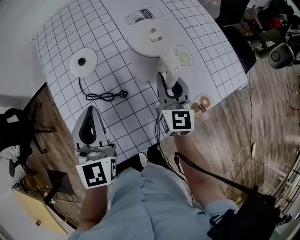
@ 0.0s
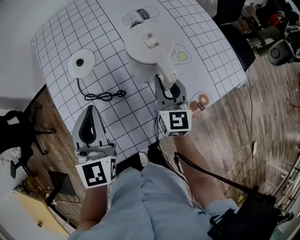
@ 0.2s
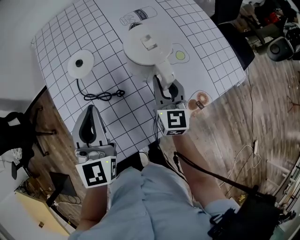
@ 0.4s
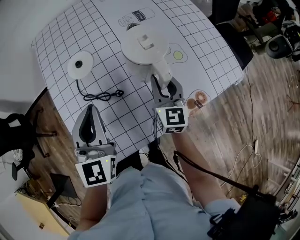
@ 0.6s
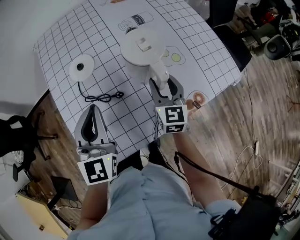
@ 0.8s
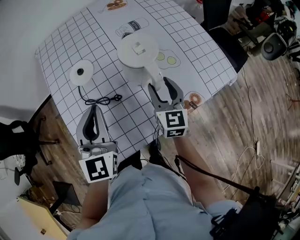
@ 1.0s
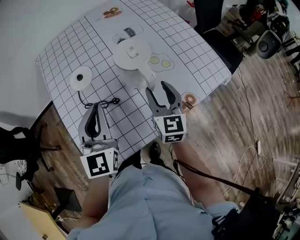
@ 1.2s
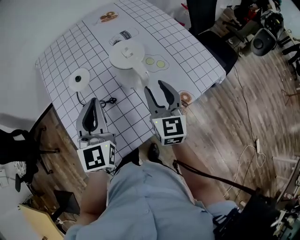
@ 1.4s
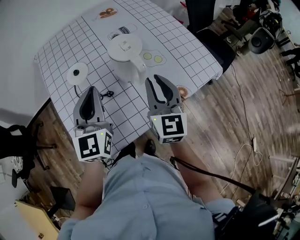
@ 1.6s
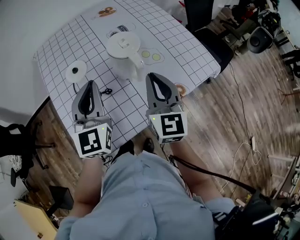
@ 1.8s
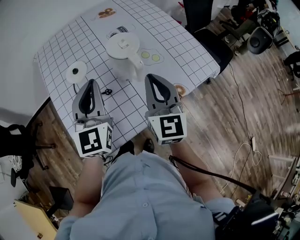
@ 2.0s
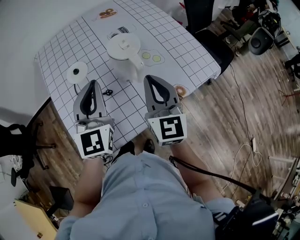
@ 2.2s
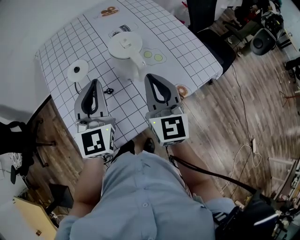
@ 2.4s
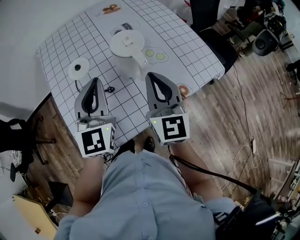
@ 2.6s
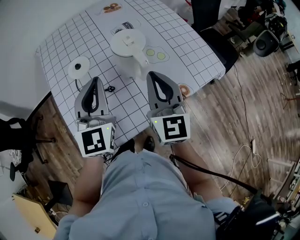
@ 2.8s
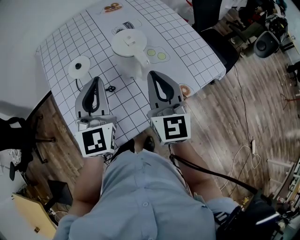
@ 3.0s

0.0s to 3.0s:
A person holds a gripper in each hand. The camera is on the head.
0.0s to 1.6s: The left gripper travels to the right and upward by about 10 cm. Meanwhile the right gripper shifts some 15 cm upward and backward, and opens, then closes again.
1.6s to 3.0s: The grippers move only a little.

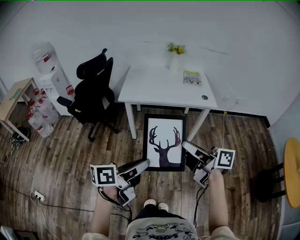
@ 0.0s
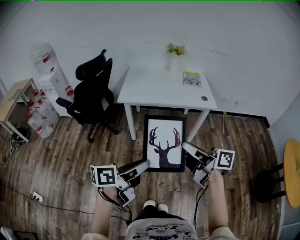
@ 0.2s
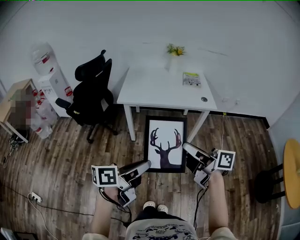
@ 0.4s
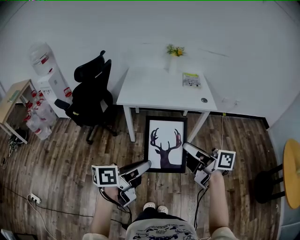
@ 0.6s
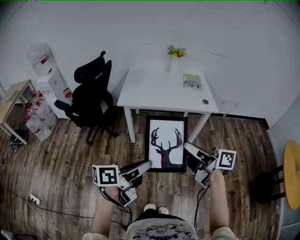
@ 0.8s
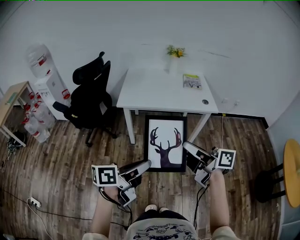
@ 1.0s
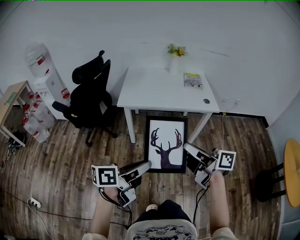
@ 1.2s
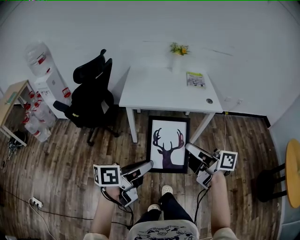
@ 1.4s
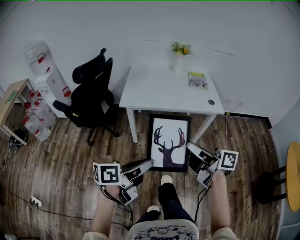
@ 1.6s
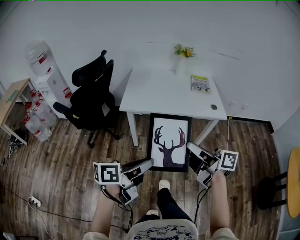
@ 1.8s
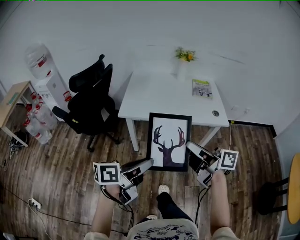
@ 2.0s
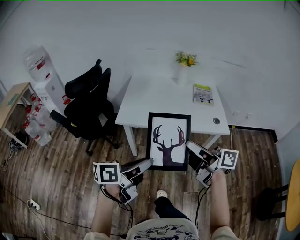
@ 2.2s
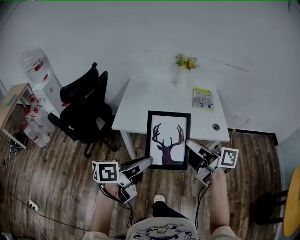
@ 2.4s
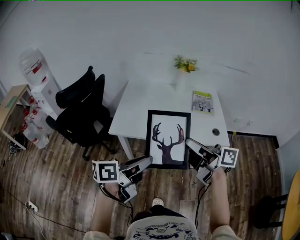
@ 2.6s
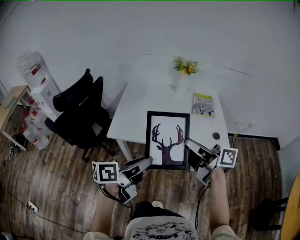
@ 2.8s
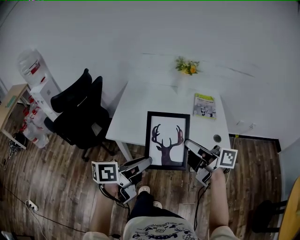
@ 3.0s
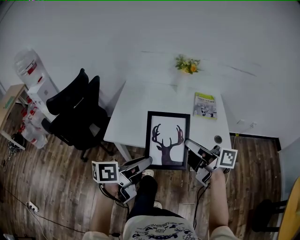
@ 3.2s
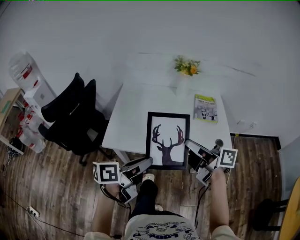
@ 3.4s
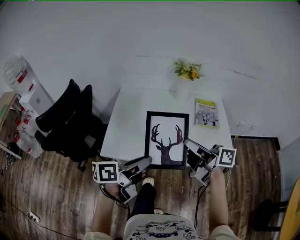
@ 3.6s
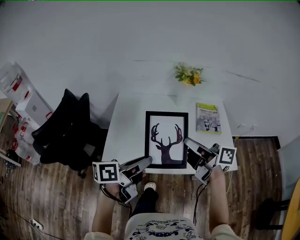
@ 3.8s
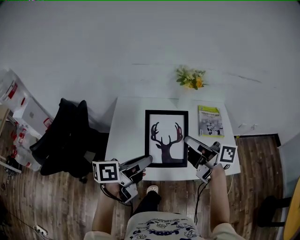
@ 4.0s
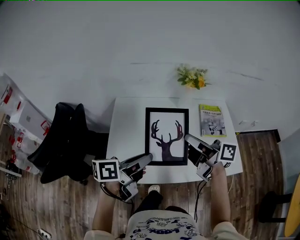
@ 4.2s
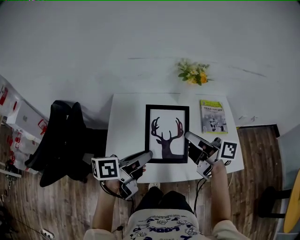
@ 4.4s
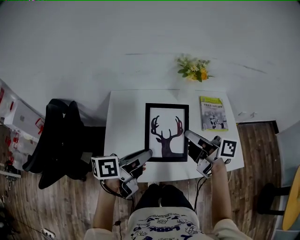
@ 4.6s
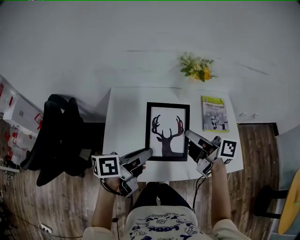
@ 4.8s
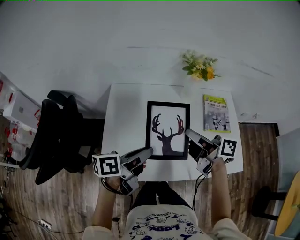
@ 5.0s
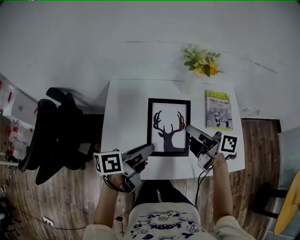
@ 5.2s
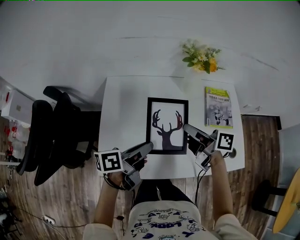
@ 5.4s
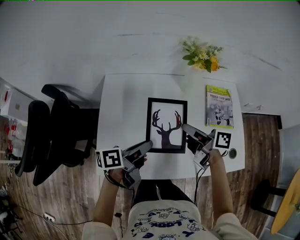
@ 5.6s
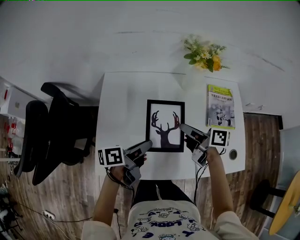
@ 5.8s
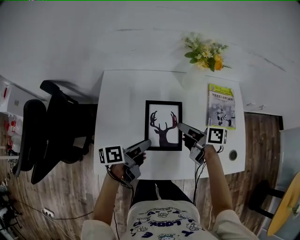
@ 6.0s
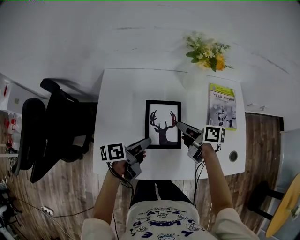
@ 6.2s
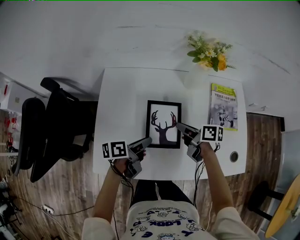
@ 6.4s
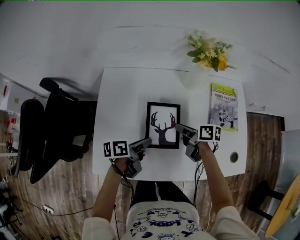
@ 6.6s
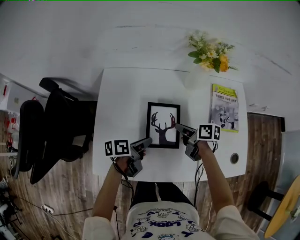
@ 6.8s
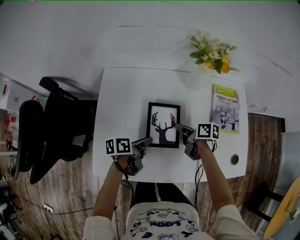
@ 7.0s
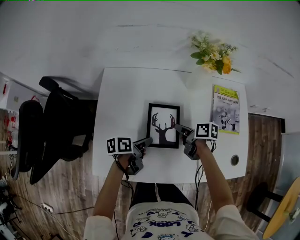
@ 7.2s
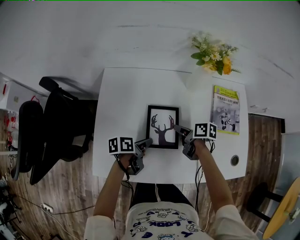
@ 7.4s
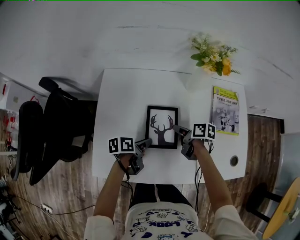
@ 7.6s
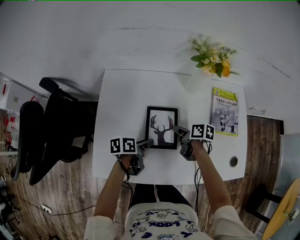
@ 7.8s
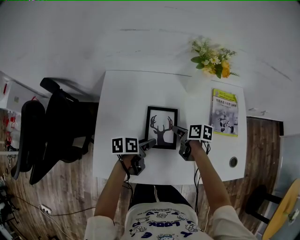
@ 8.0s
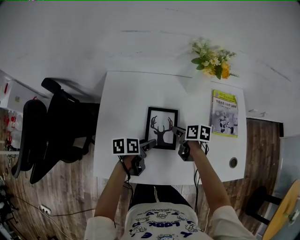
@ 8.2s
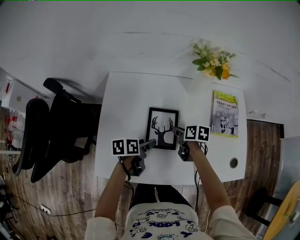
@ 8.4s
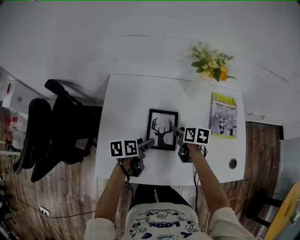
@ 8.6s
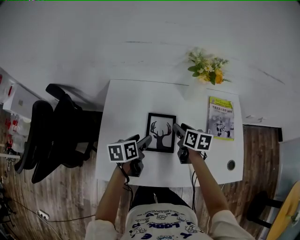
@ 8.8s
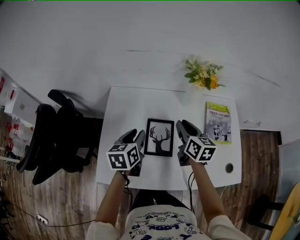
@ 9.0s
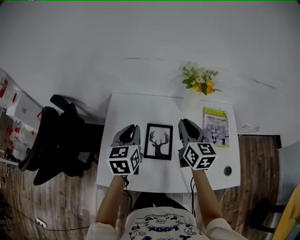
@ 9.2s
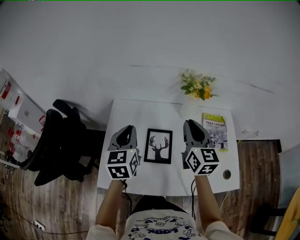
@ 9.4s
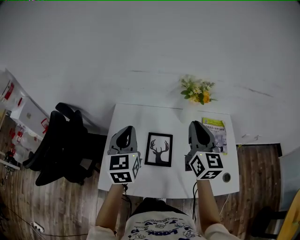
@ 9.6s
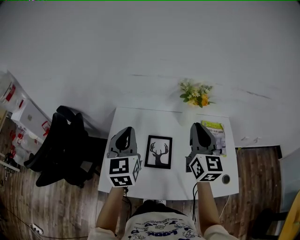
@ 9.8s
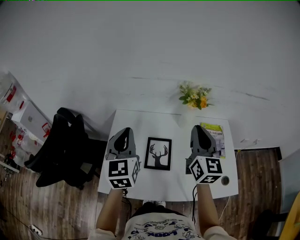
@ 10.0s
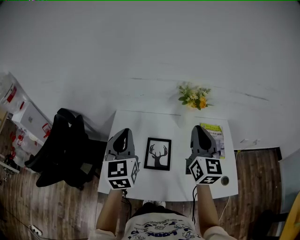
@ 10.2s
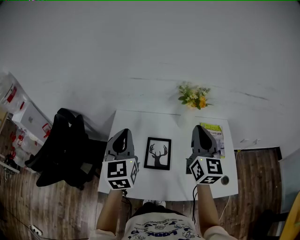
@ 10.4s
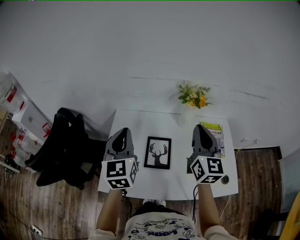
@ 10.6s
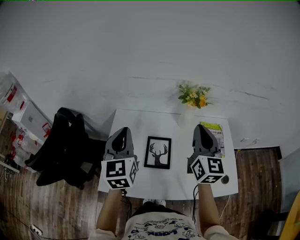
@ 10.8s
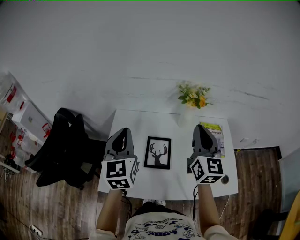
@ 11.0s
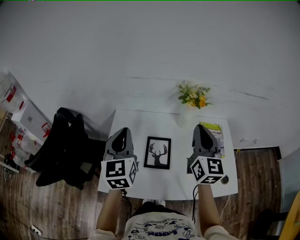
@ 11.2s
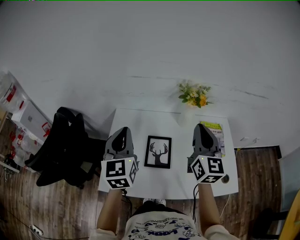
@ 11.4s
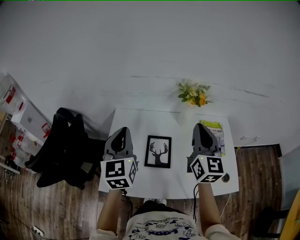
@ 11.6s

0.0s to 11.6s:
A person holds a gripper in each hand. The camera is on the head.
0.0s to 1.4s: Both grippers travel together forward, some 5 cm.
1.4s to 2.8s: The two grippers go some 35 cm forward.
2.8s to 4.4s: Both grippers travel together forward, about 35 cm.
4.4s to 5.8s: Both grippers move downward and forward, roughly 15 cm.
5.8s to 7.2s: Both grippers move downward, roughly 15 cm. The right gripper rotates about 20 degrees.
7.2s to 8.8s: Both grippers move upward, approximately 10 cm. The right gripper swivels about 30 degrees, and opens its fingers, while the left gripper rotates approximately 30 degrees, and opens.
8.8s to 10.2s: The grippers both shift upward by approximately 30 cm. The right gripper tilts its fingers some 40 degrees upward, and closes its fingers. Meanwhile the left gripper angles its fingers upward, by about 30 degrees, and closes its fingers.
10.2s to 11.6s: Both grippers stay about where they are.

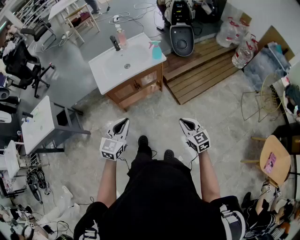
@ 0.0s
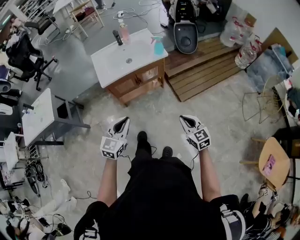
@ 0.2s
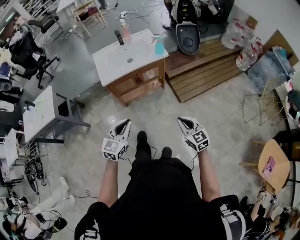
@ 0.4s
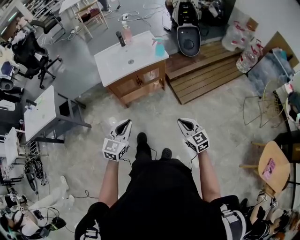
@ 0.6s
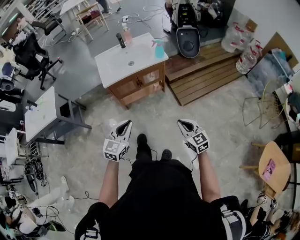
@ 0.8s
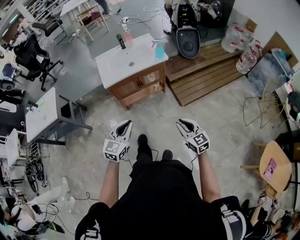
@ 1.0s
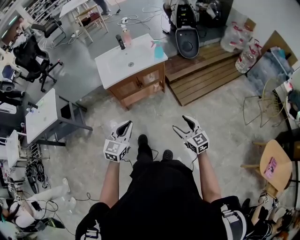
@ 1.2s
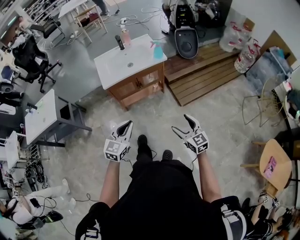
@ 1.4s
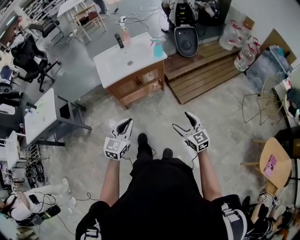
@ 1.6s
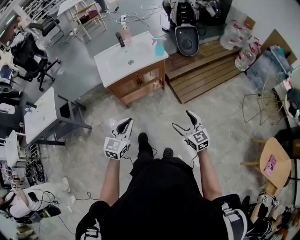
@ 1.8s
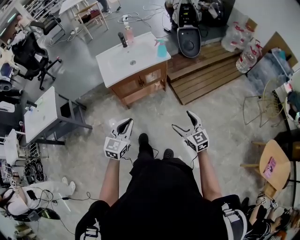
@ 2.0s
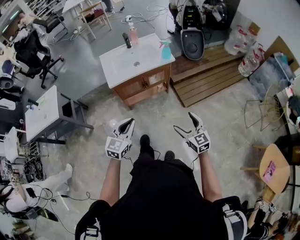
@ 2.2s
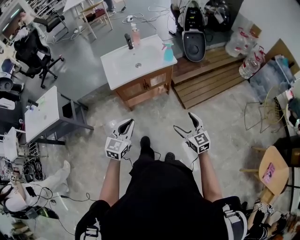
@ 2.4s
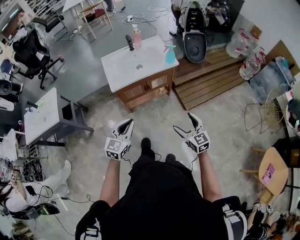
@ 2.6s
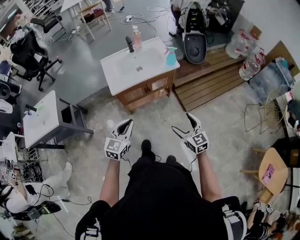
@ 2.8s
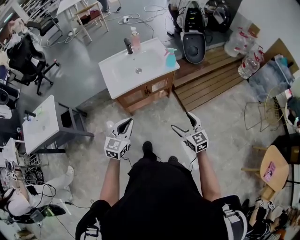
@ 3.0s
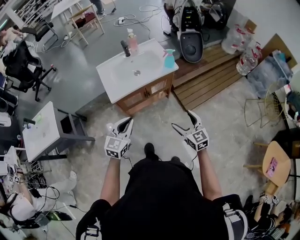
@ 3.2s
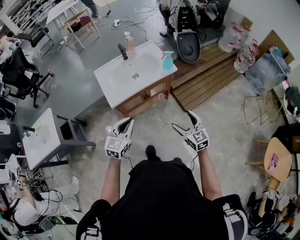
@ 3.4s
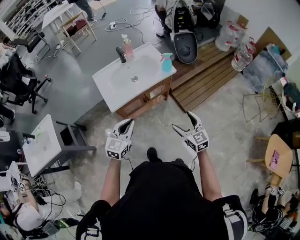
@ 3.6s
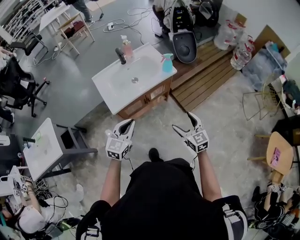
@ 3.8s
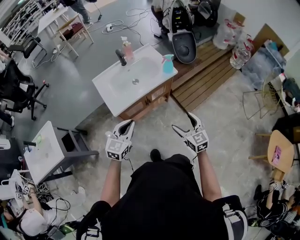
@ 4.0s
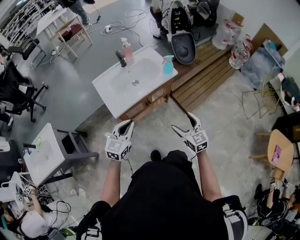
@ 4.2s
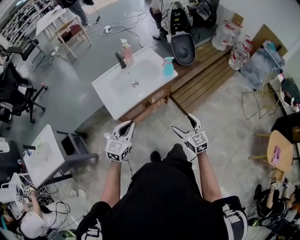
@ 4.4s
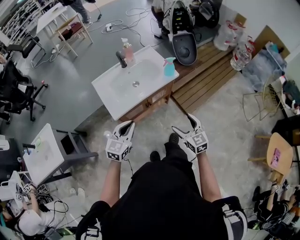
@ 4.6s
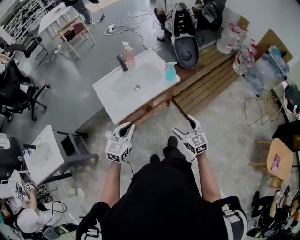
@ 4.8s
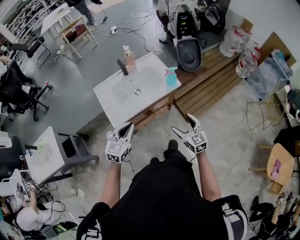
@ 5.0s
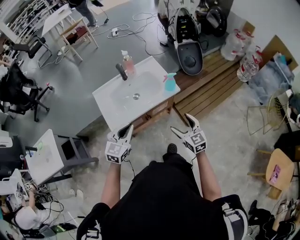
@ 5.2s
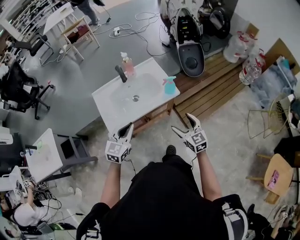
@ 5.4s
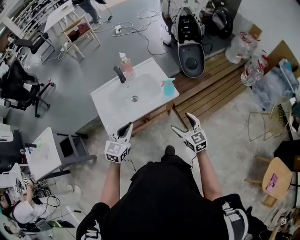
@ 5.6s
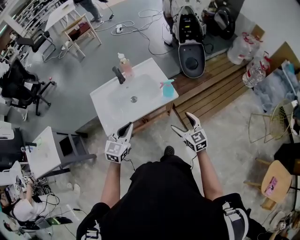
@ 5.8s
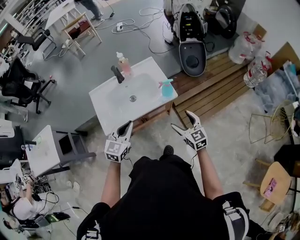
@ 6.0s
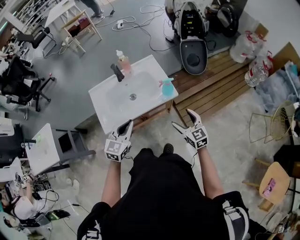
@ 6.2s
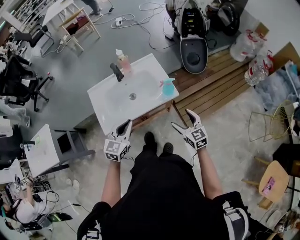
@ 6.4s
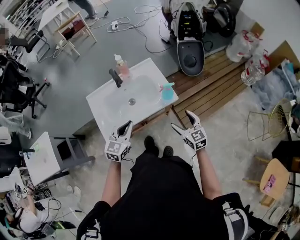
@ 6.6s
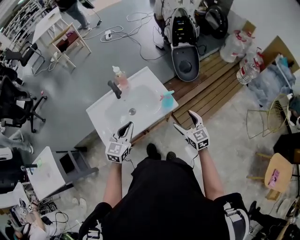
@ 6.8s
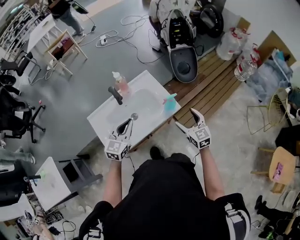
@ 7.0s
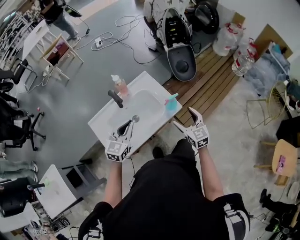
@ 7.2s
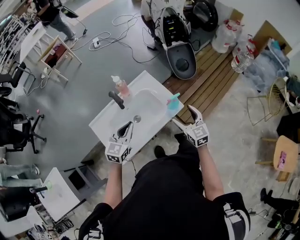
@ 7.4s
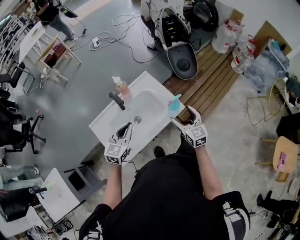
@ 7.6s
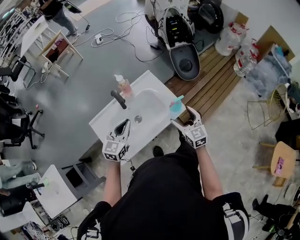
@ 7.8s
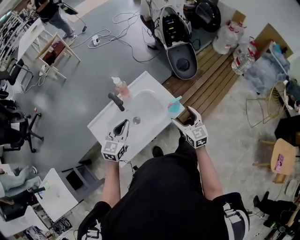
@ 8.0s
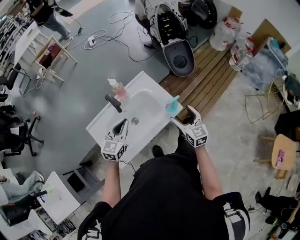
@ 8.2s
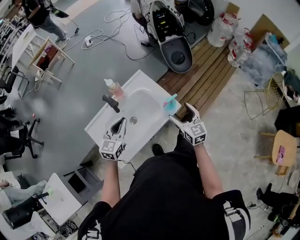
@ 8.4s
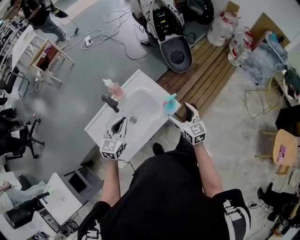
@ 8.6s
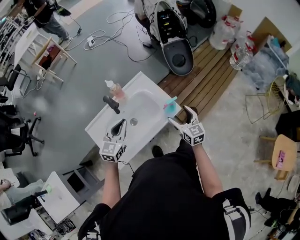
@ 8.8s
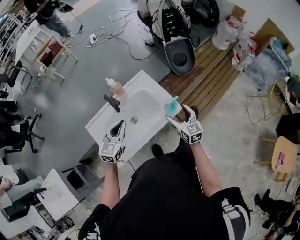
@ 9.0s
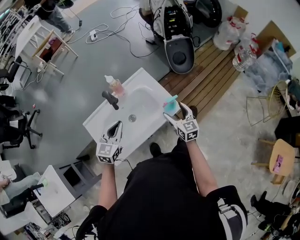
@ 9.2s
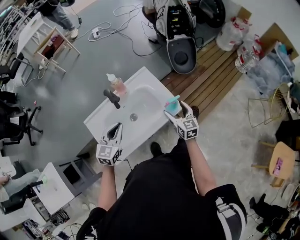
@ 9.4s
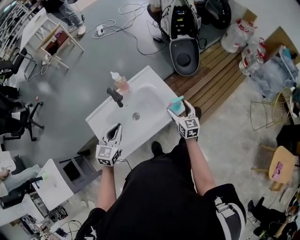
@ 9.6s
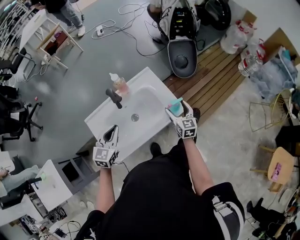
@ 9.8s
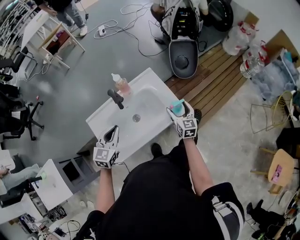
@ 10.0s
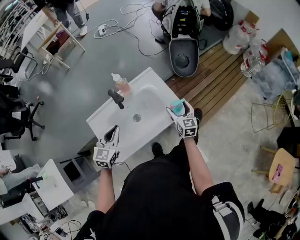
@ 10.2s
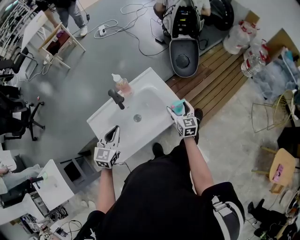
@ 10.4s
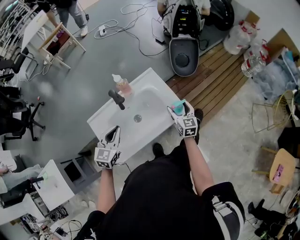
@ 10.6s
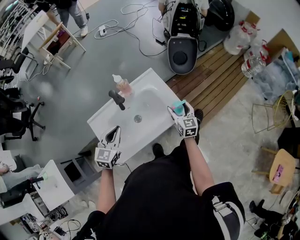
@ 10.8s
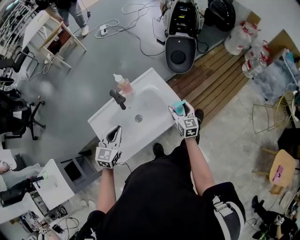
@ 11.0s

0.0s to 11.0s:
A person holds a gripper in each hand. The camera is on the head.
0.0s to 1.6s: Both grippers move backward, approximately 5 cm. The right gripper opens.
1.6s to 3.2s: Both grippers move forward and to the left, about 25 cm.
3.2s to 4.8s: The left gripper moves forward, some 15 cm. The right gripper heads forward and to the left, covering some 15 cm.
4.8s to 6.2s: The grippers both shift forward and to the right by approximately 25 cm.
6.2s to 7.8s: The two grippers go some 20 cm forward and to the left.
7.8s to 9.4s: The right gripper travels forward and downward by about 10 cm.
9.4s to 11.0s: The right gripper moves roughly 5 cm.
